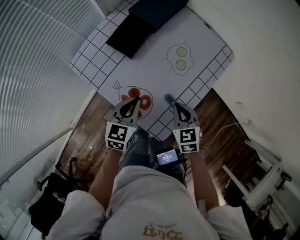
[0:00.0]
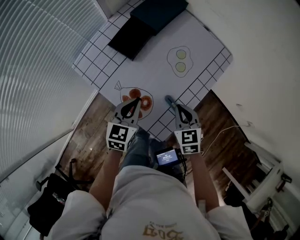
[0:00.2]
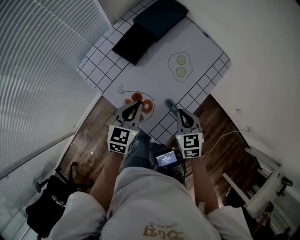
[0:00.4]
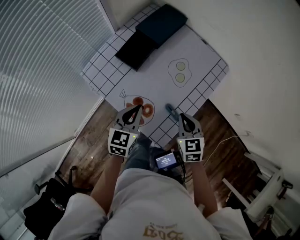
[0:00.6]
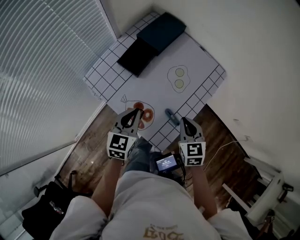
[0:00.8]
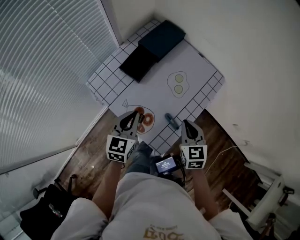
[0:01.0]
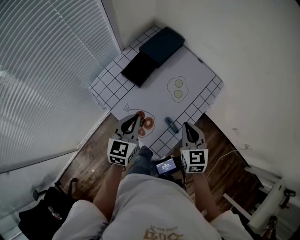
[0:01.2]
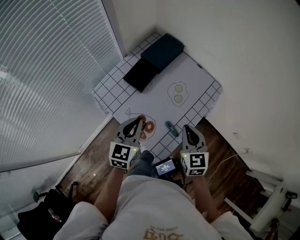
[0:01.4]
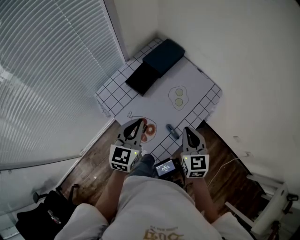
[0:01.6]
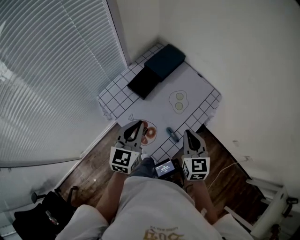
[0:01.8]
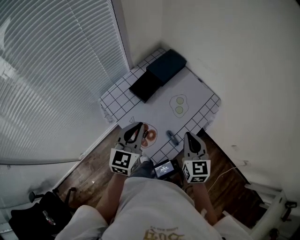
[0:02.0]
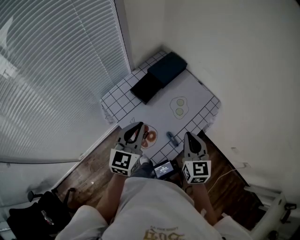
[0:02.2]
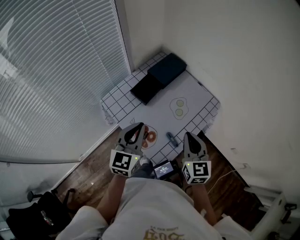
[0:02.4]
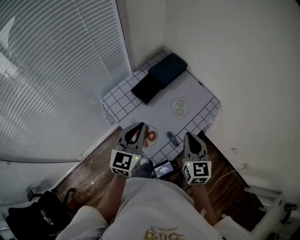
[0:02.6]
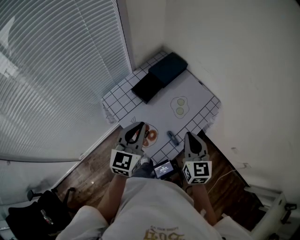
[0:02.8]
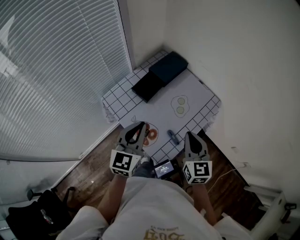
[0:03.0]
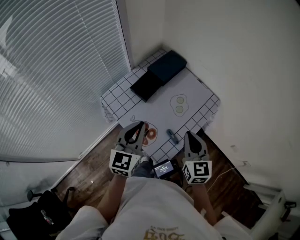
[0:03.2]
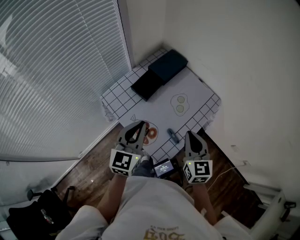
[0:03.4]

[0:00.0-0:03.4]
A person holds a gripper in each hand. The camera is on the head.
0:00.0 to 0:01.6: Both grippers move upward, roughly 15 cm. The right gripper changes its angle by roughly 20 degrees.
0:01.6 to 0:03.4: The right gripper shifts by about 5 cm, while the left gripper travels upward by approximately 5 cm.

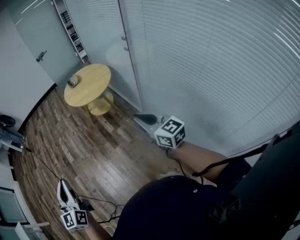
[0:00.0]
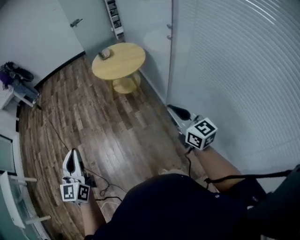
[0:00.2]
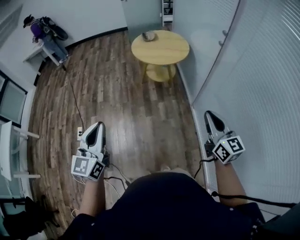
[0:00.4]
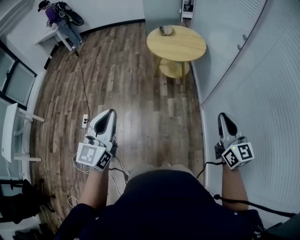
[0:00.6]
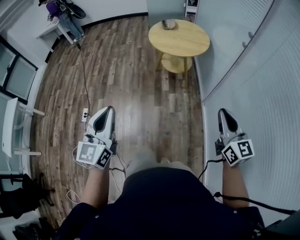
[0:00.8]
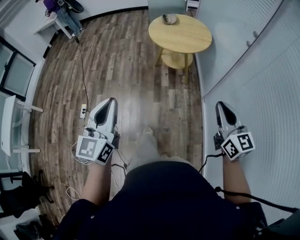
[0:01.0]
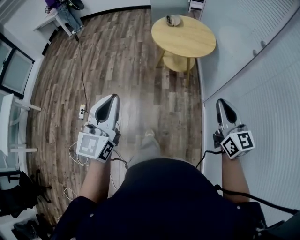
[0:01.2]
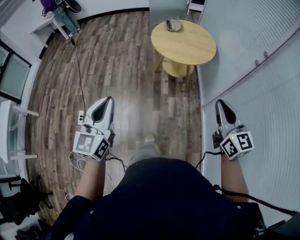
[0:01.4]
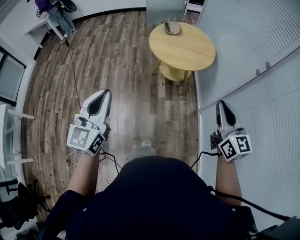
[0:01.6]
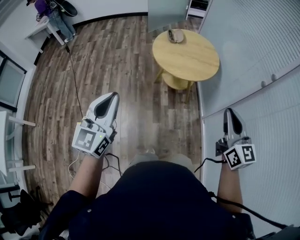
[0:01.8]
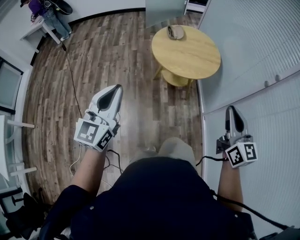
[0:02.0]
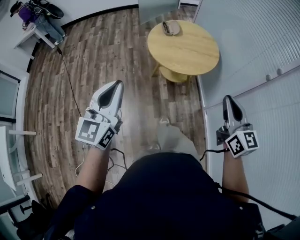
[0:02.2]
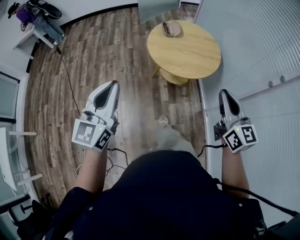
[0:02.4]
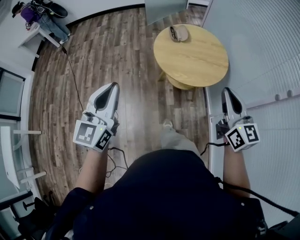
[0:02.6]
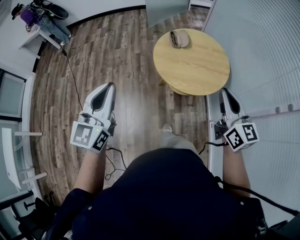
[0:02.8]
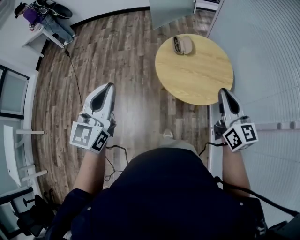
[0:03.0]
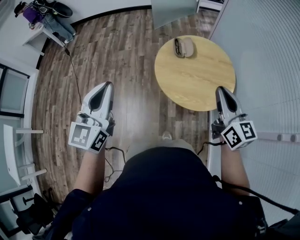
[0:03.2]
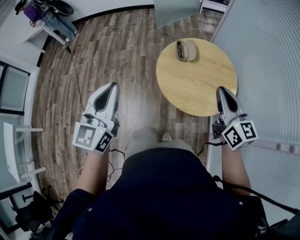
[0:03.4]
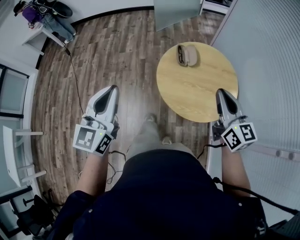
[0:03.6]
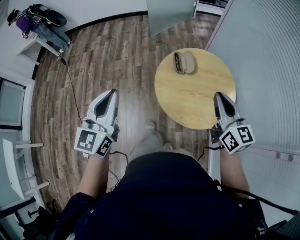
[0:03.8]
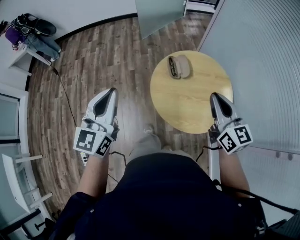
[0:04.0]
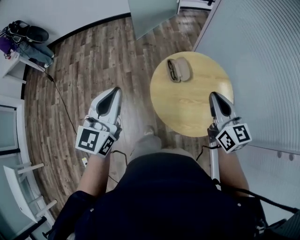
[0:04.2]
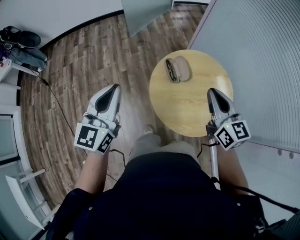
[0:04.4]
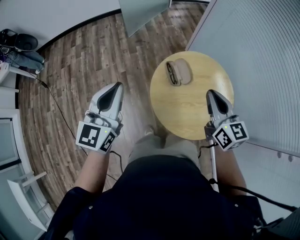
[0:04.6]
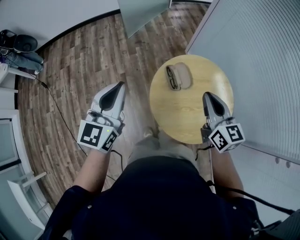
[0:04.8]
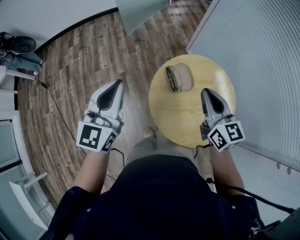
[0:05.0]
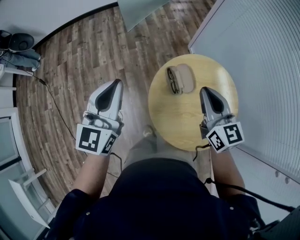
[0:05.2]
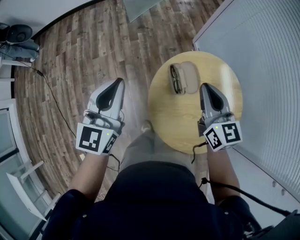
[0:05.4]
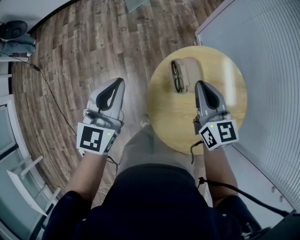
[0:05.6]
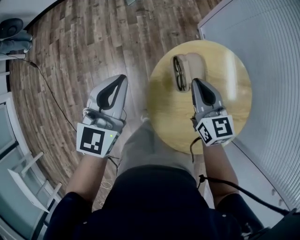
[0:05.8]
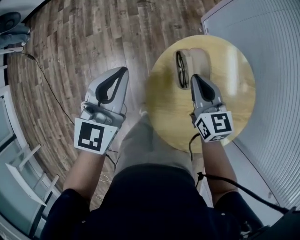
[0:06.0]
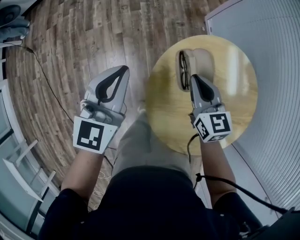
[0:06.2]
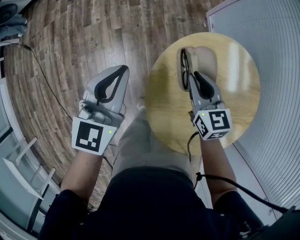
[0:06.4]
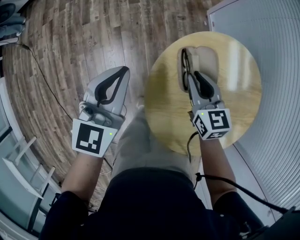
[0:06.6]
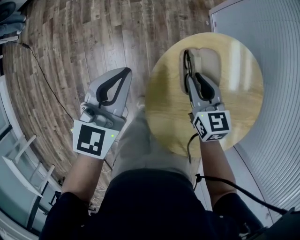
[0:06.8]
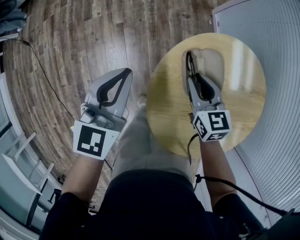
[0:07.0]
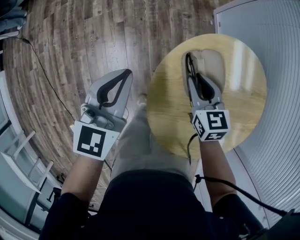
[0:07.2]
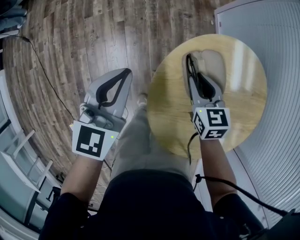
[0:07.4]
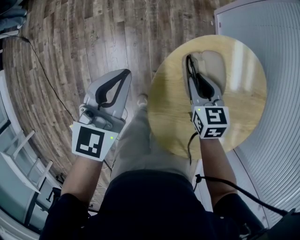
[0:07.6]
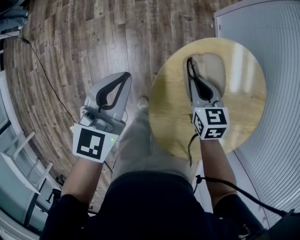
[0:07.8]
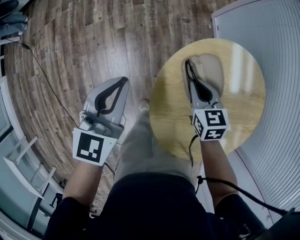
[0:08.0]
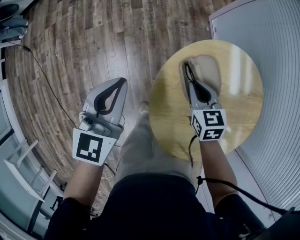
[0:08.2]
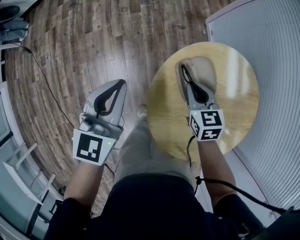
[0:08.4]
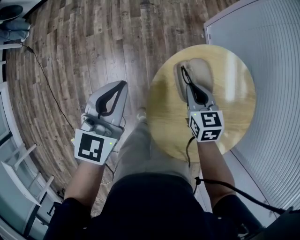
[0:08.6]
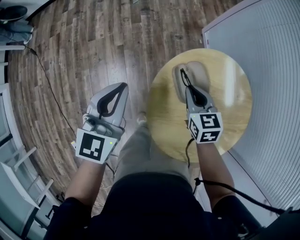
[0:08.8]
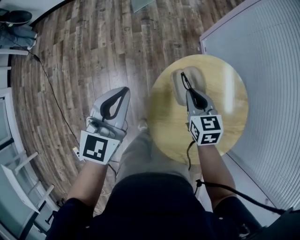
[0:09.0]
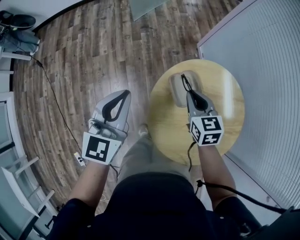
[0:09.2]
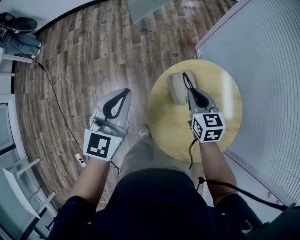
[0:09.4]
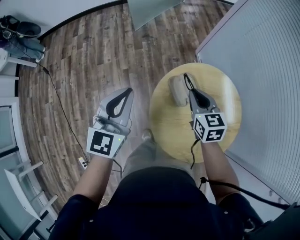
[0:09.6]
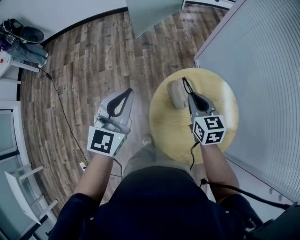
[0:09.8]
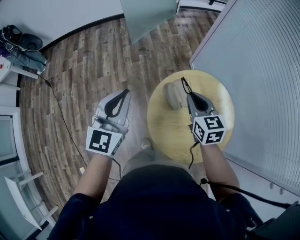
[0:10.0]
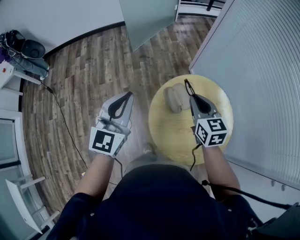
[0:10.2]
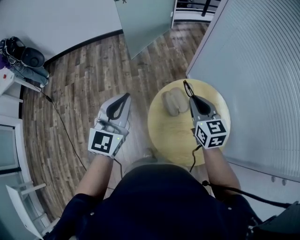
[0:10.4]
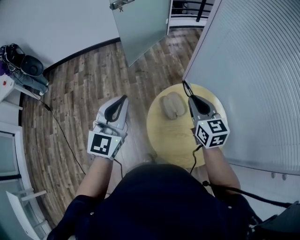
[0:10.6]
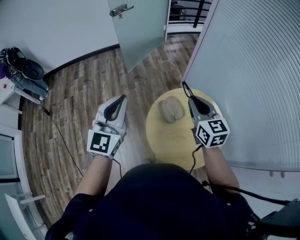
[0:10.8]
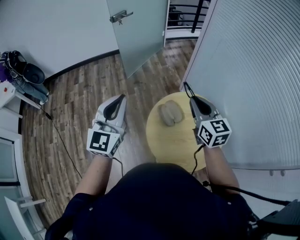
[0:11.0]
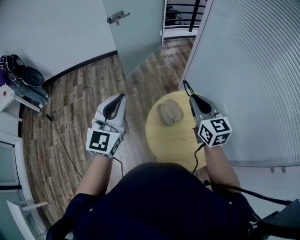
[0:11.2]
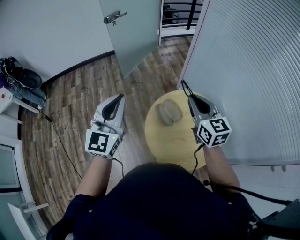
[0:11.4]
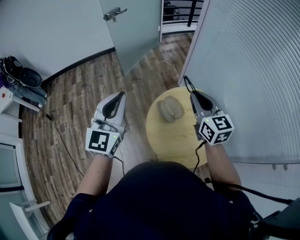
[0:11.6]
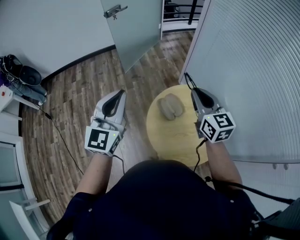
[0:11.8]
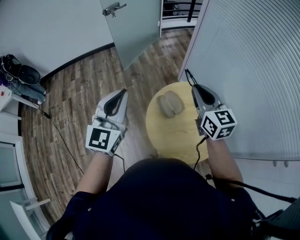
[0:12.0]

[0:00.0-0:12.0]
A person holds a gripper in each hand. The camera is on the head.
0:00.0 to 0:01.6: Both grippers travel together forward, some 30 cm.
0:01.6 to 0:03.0: The grippers both shift forward by some 35 cm.
0:03.0 to 0:04.4: Both grippers move forward, about 30 cm.
0:04.4 to 0:06.0: The right gripper heads downward and forward, covering some 30 cm. Meanwhile the left gripper heads forward and downward, covering some 30 cm.
0:06.0 to 0:07.6: Both grippers travel together downward, some 10 cm. The right gripper changes its angle by roughly 20 degrees, and opens up.
0:07.6 to 0:09.0: Both grippers travel together upward, roughly 10 cm.
0:09.0 to 0:10.4: The right gripper is displaced upward by some 20 cm. The left gripper moves upward and backward, roughly 15 cm.
0:10.4 to 0:12.0: The left gripper is displaced upward by some 5 cm; the right gripper travels upward by approximately 10 cm.

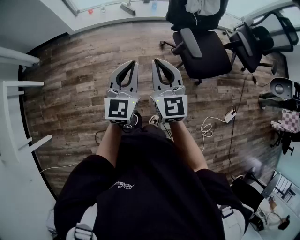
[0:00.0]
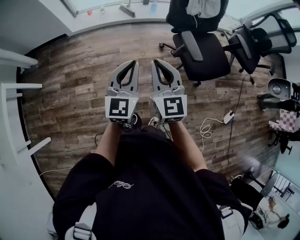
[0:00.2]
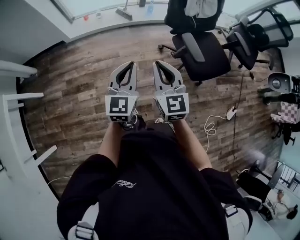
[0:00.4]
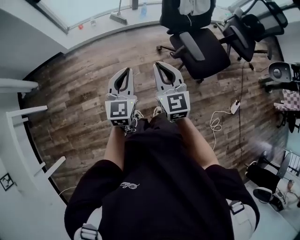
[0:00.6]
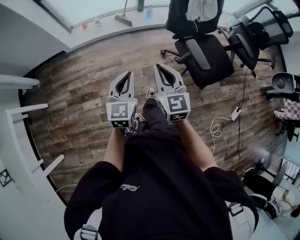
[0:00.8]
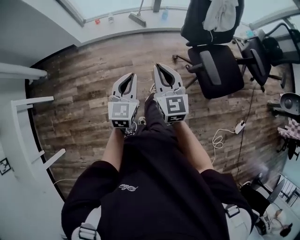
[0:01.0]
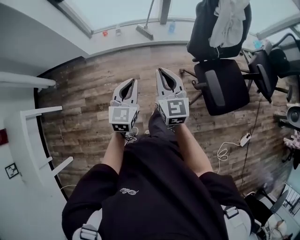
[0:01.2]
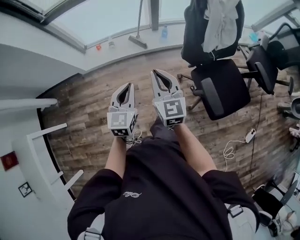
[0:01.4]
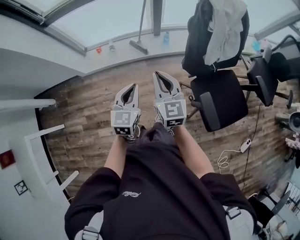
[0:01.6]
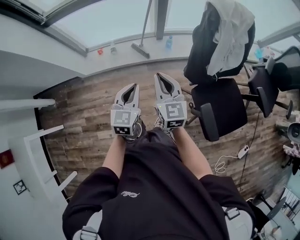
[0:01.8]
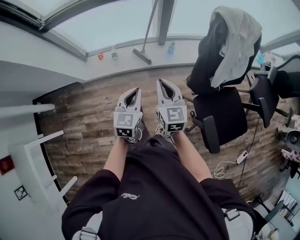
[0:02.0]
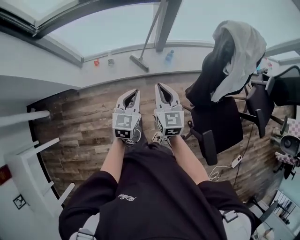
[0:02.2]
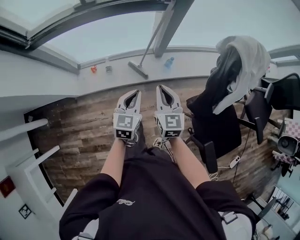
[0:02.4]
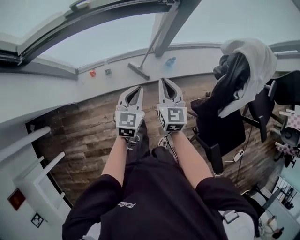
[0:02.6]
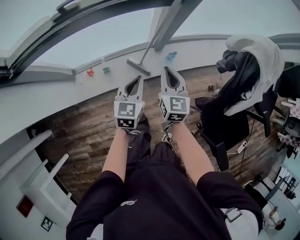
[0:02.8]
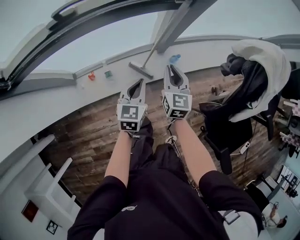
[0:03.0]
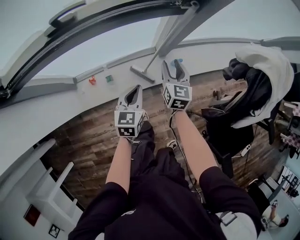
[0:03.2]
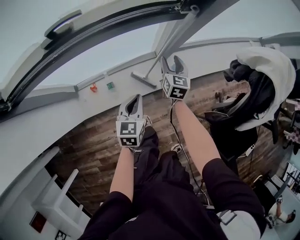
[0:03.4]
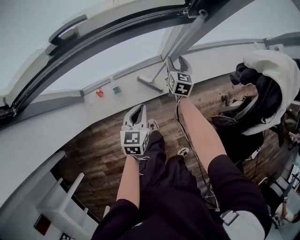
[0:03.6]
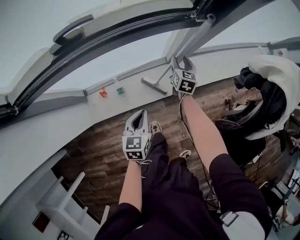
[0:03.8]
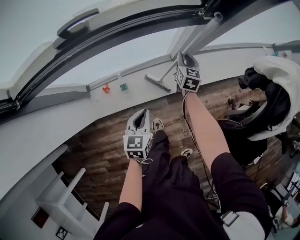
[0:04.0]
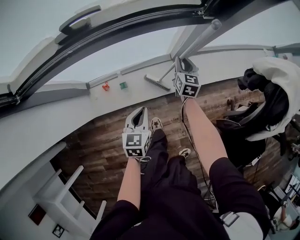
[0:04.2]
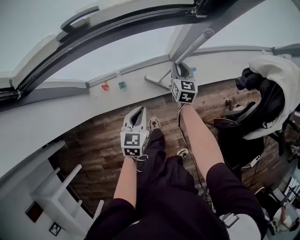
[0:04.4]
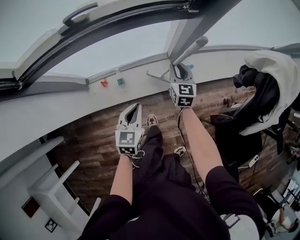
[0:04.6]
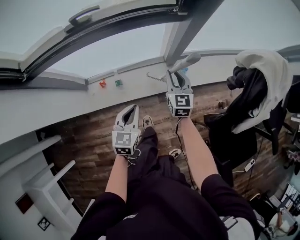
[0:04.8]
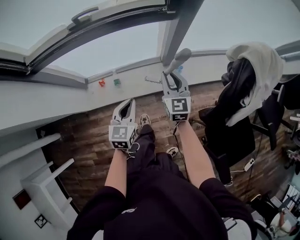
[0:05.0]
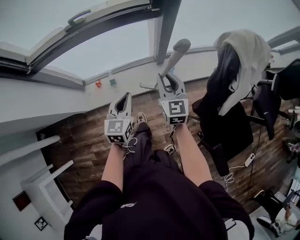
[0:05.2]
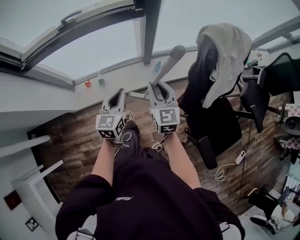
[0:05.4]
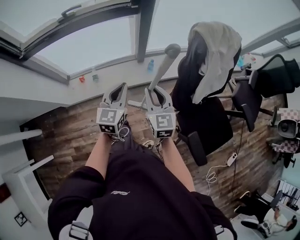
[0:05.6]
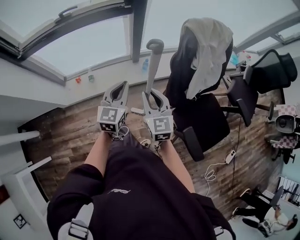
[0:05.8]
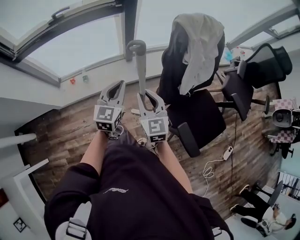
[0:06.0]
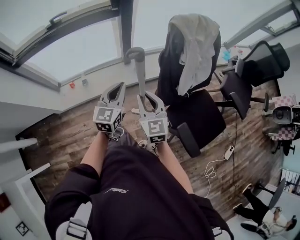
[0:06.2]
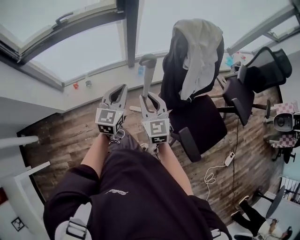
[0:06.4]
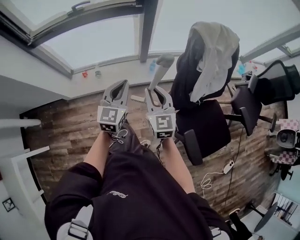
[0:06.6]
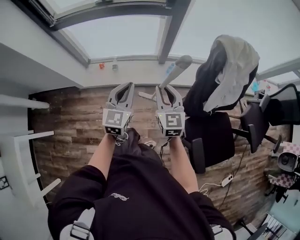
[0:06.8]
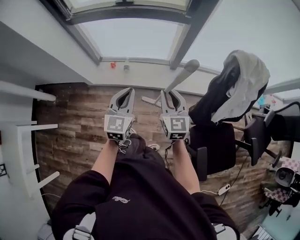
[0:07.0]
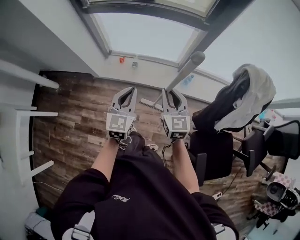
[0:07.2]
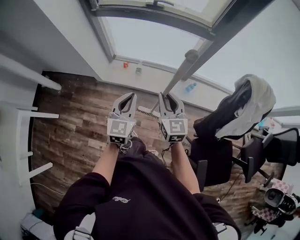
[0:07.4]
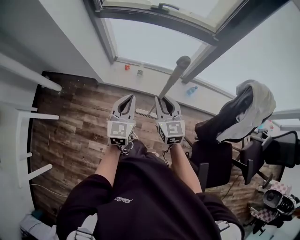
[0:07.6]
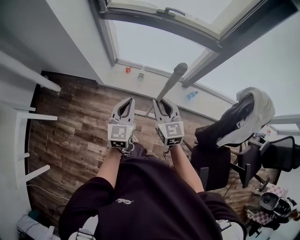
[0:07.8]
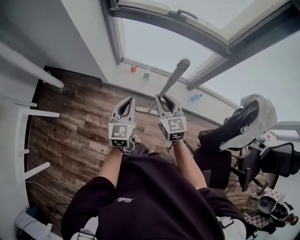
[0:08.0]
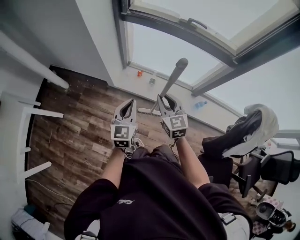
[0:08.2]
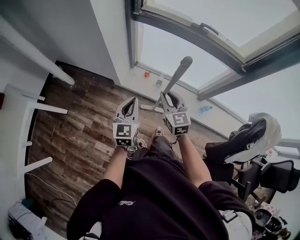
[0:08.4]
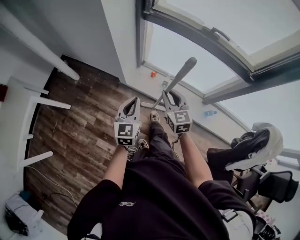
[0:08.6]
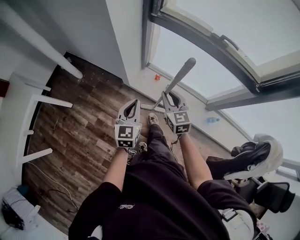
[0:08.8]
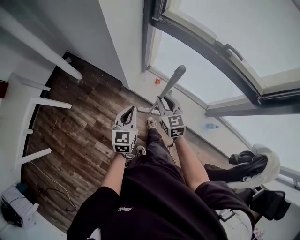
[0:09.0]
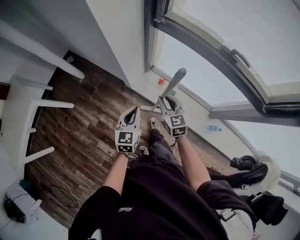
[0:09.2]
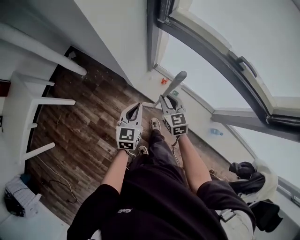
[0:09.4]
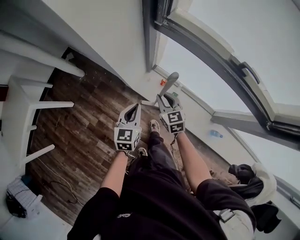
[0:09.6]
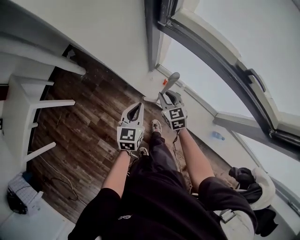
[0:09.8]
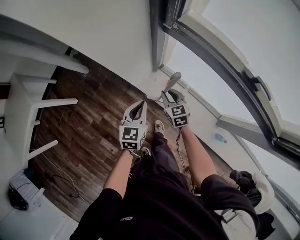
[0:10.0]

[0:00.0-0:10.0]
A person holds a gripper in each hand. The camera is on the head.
0:00.0 to 0:01.4: The two grippers go approximately 35 cm forward.
0:01.4 to 0:02.8: Both grippers are carried forward, some 50 cm. The right gripper swivels roughly 20 degrees.
0:02.8 to 0:04.2: The right gripper travels forward and downward by about 25 cm, and opens and closes again, while the left gripper heads downward and to the left, covering roughly 15 cm.
0:04.2 to 0:05.8: The right gripper goes approximately 50 cm backward and upward, and changes its angle by approximately 20 degrees; the left gripper travels to the right, upward and backward by some 40 cm, and changes its angle by some 30 degrees.
0:05.8 to 0:07.2: The right gripper changes place by about 15 cm, and rotates about 20 degrees; the left gripper ends up about 20 cm from where it was, and rotates about 30 degrees.
0:07.2 to 0:08.6: Both grippers travel together to the left and forward, some 30 cm. The left gripper turns by some 20 degrees; the right gripper turns by some 20 degrees.
0:08.6 to 0:10.0: The two grippers go about 30 cm forward and downward. The right gripper rotates some 20 degrees.
